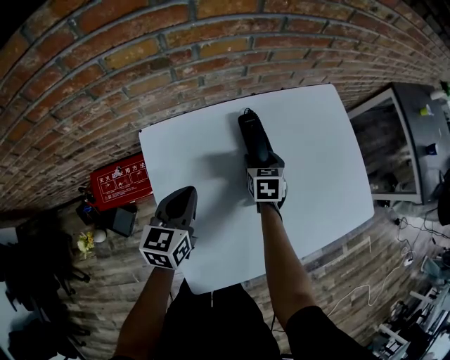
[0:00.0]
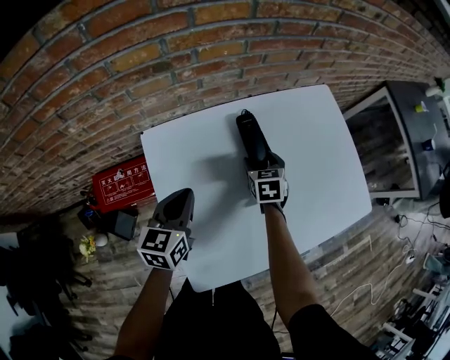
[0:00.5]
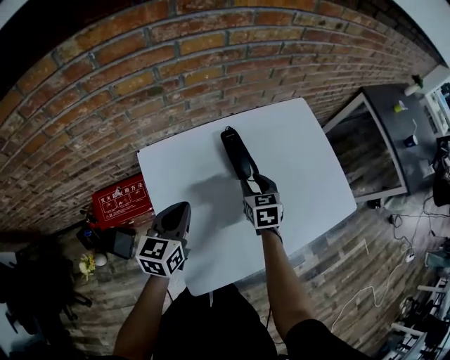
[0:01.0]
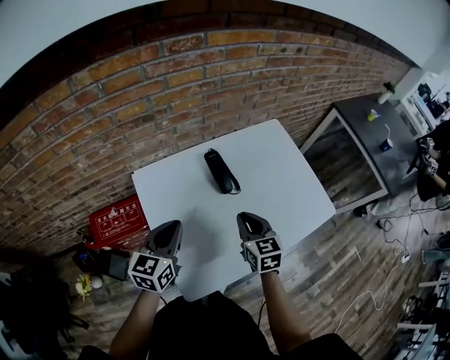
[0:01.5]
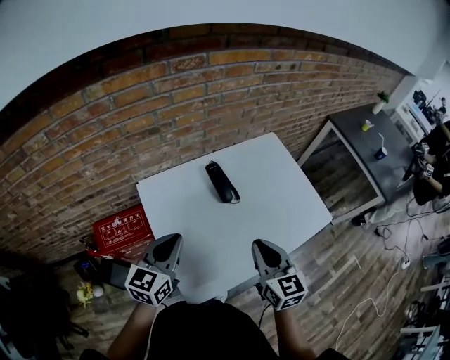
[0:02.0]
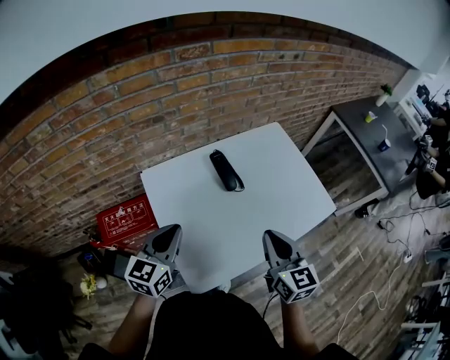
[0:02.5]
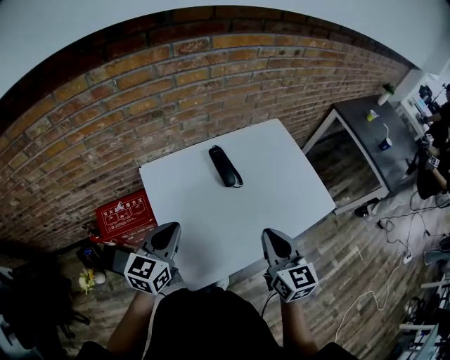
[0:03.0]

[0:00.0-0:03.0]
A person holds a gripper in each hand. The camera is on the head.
0:00.0 to 0:01.5: The left gripper heads upward and backward, covering some 15 cm; the right gripper heads backward and upward, covering roughly 25 cm, and closes up.
0:01.5 to 0:03.0: The left gripper moves backward, some 5 cm; the right gripper is displaced upward and backward by about 15 cm.

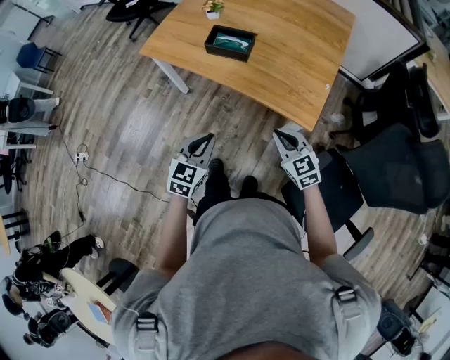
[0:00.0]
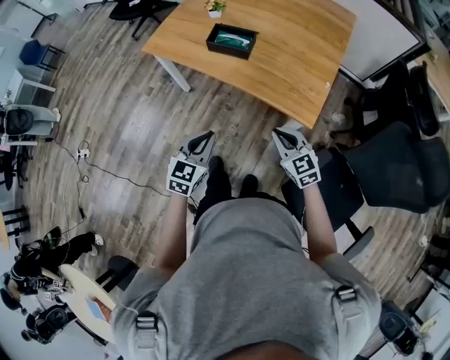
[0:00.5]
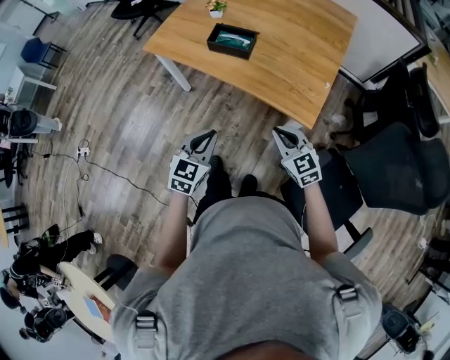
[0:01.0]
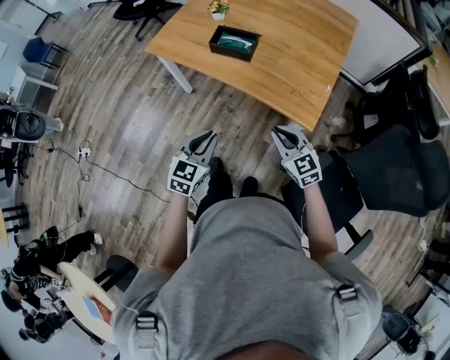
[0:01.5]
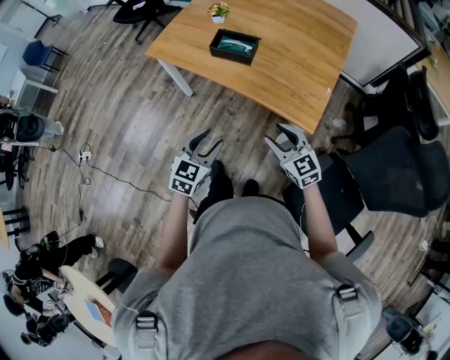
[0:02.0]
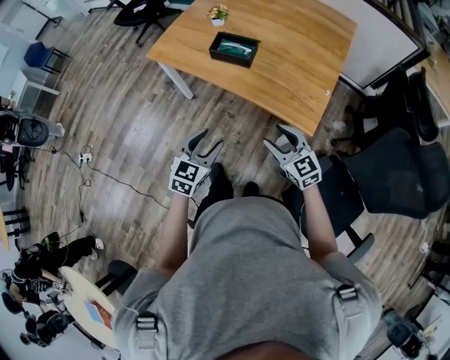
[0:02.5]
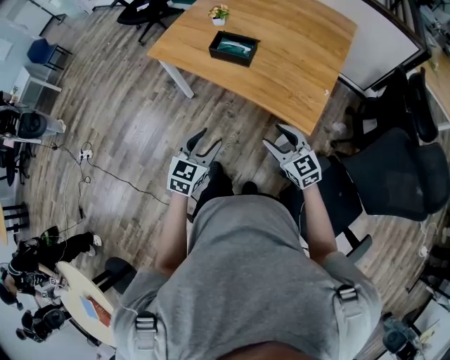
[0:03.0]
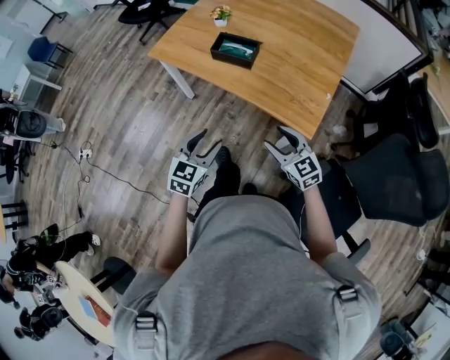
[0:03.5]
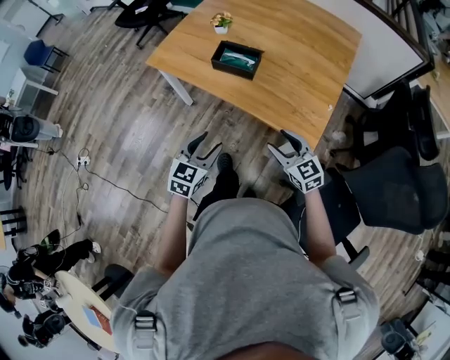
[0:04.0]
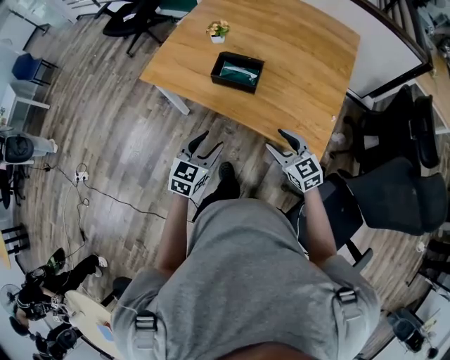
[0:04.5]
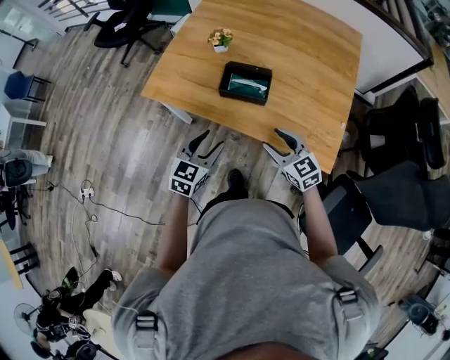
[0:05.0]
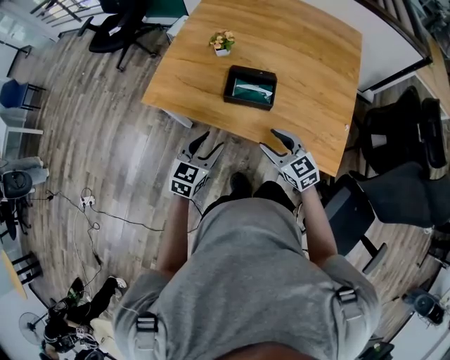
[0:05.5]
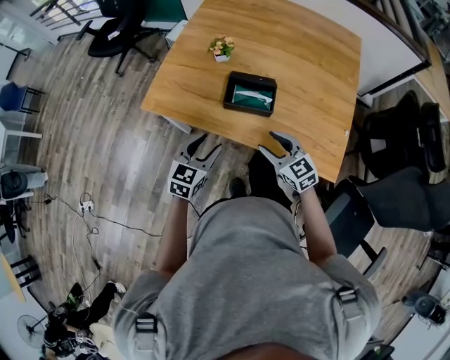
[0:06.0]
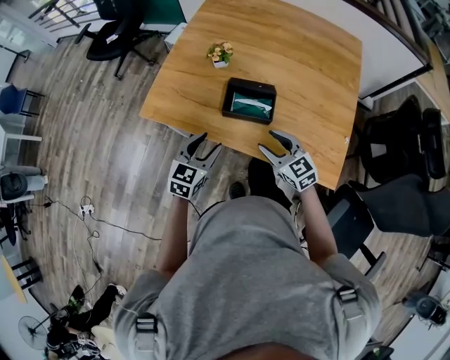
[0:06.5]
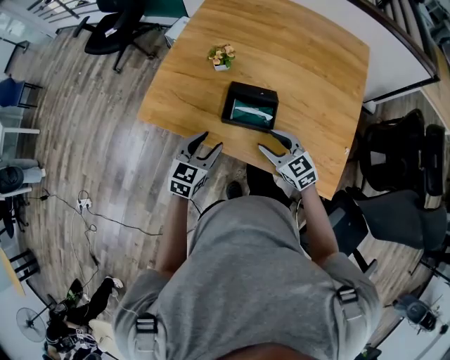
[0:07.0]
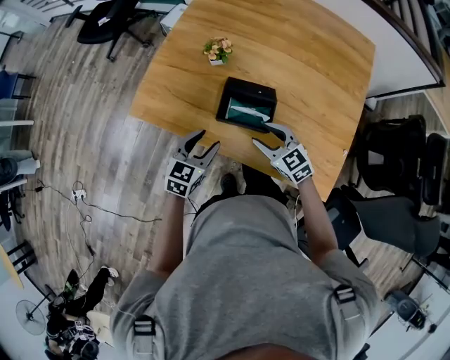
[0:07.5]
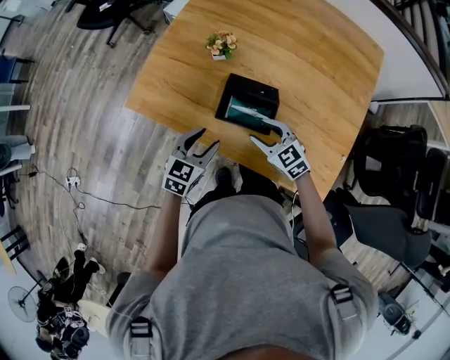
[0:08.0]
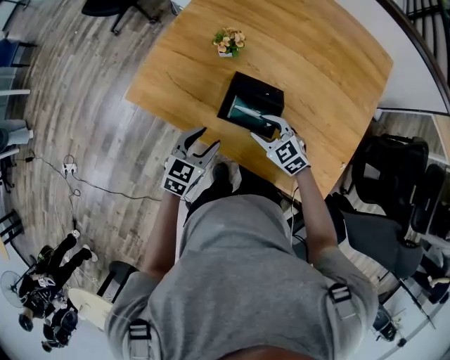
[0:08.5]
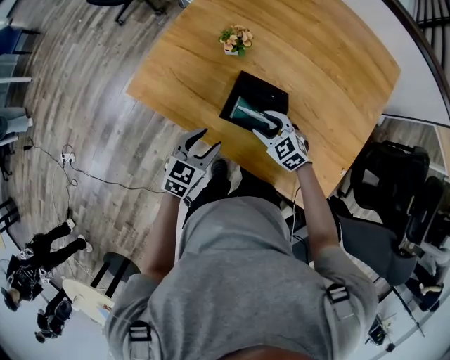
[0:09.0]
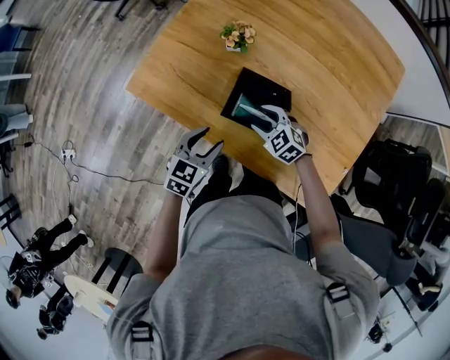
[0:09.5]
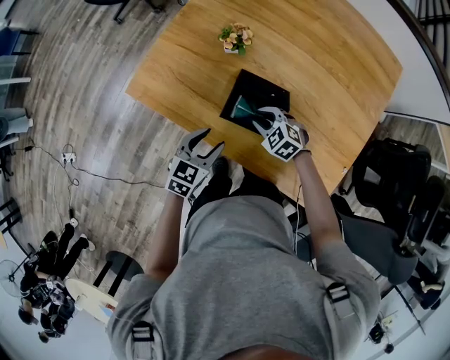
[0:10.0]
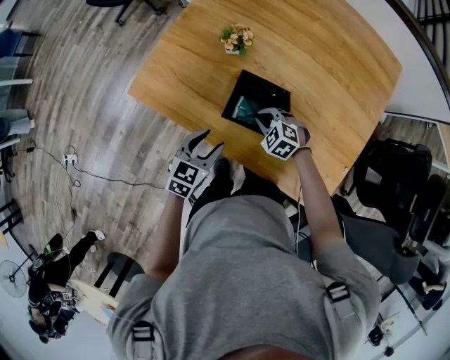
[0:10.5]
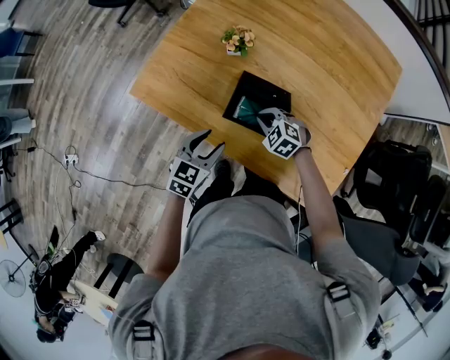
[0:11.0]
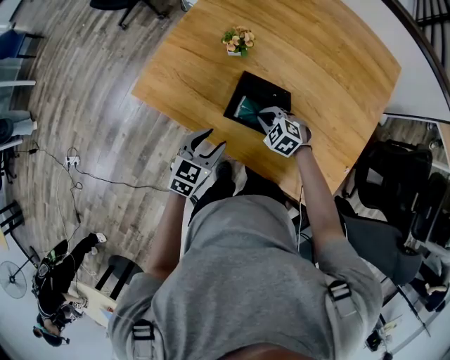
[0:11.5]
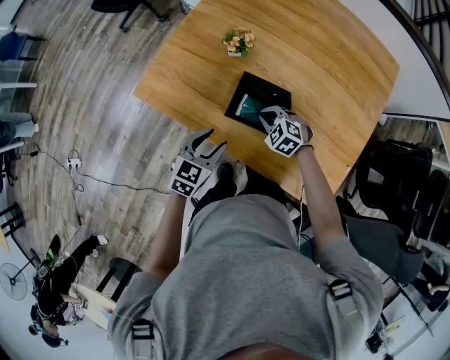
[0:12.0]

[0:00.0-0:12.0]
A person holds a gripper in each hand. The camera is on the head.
0:00.0 to 0:02.0: The left gripper opens up. Meanwhile the right gripper opens its fingers.
0:02.0 to 0:04.0: Both grippers move forward, some 5 cm.
0:04.0 to 0:06.0: Both grippers move forward and to the left, some 25 cm.
0:06.0 to 0:08.0: The right gripper heads forward, covering some 15 cm; the left gripper is displaced forward and downward by some 15 cm.
0:08.0 to 0:10.0: The right gripper goes about 10 cm downward and forward, turns by approximately 30 degrees, and closes up.
0:10.0 to 0:12.0: The right gripper closes.

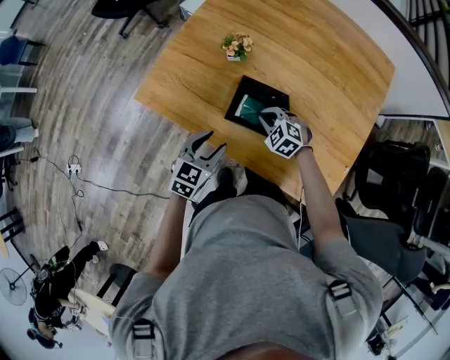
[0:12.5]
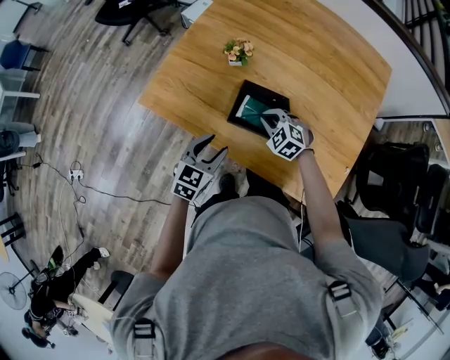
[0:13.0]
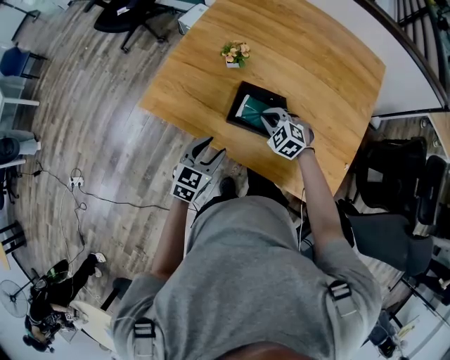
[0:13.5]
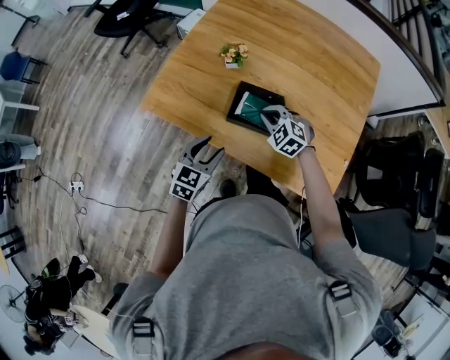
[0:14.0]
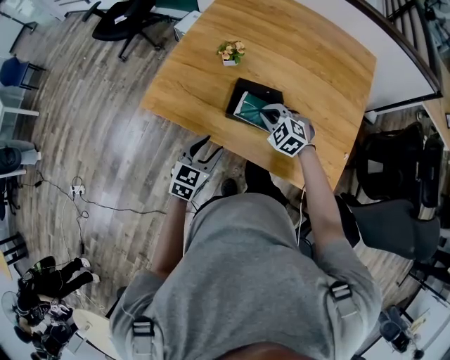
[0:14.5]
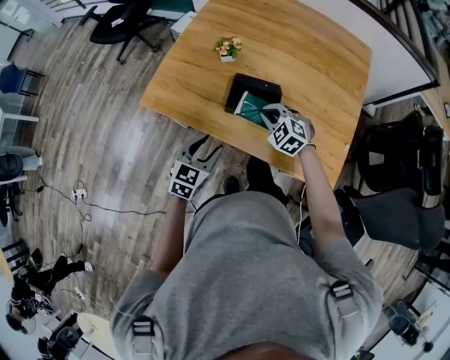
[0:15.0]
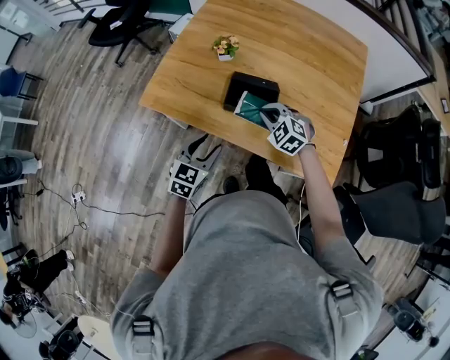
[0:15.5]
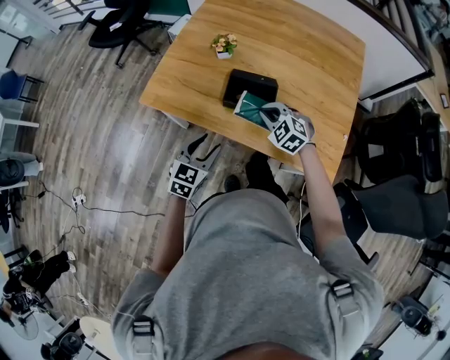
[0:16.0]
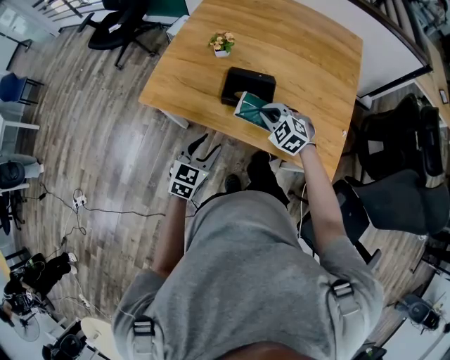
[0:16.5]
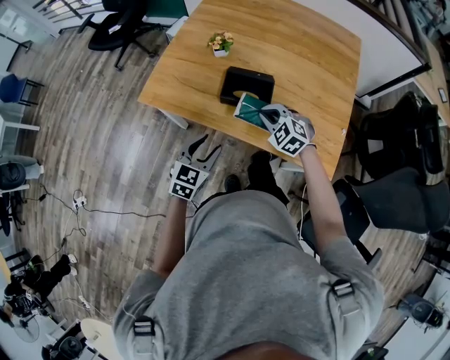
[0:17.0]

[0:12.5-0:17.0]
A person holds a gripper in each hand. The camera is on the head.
0:12.5 to 0:14.5: The left gripper is displaced backward by about 5 cm, while the right gripper travels upward by approximately 10 cm.
0:14.5 to 0:17.0: The grippers both shift backward by some 10 cm.

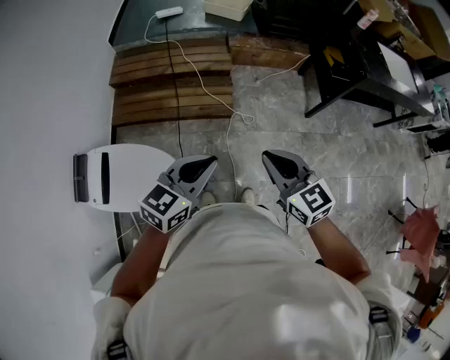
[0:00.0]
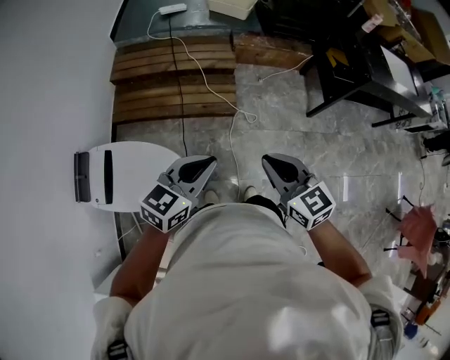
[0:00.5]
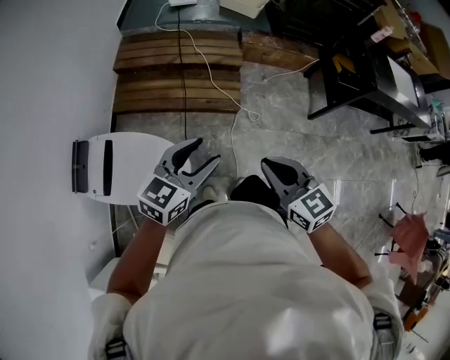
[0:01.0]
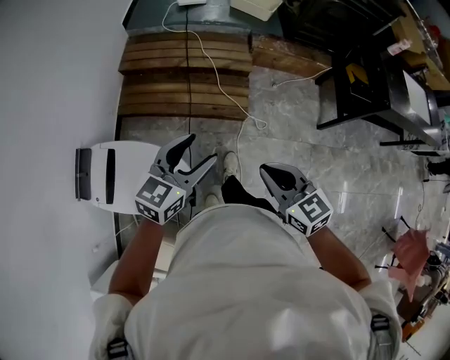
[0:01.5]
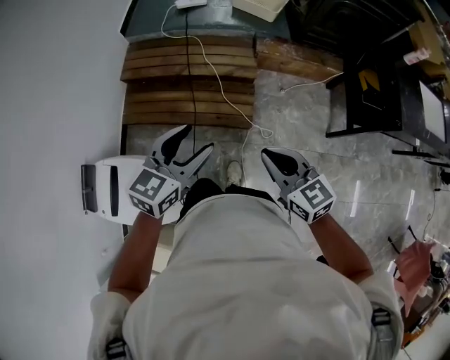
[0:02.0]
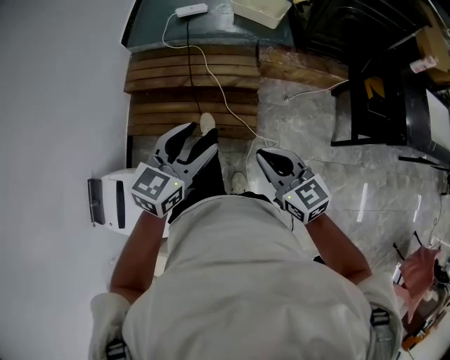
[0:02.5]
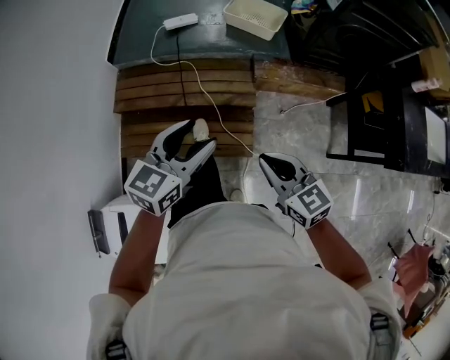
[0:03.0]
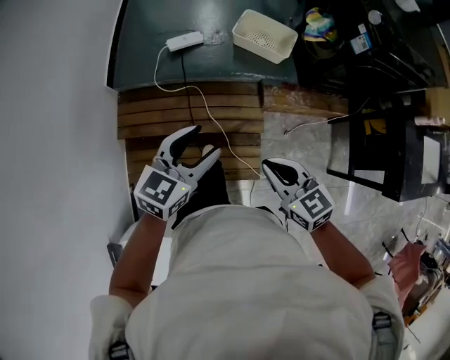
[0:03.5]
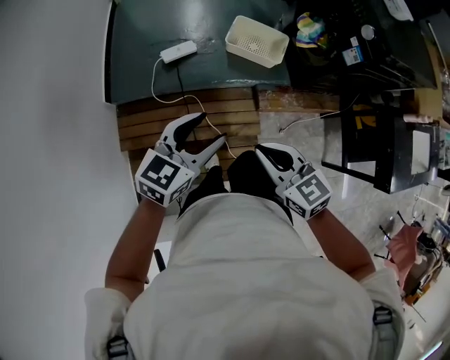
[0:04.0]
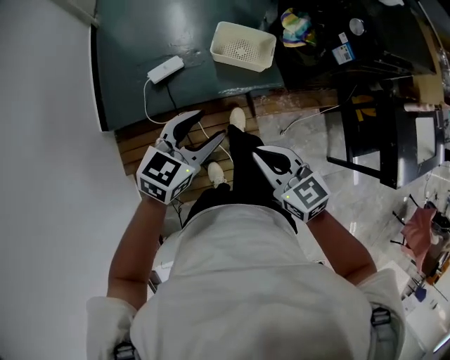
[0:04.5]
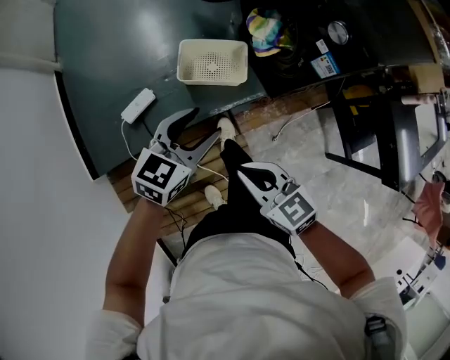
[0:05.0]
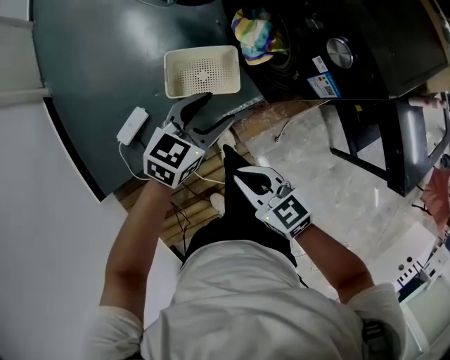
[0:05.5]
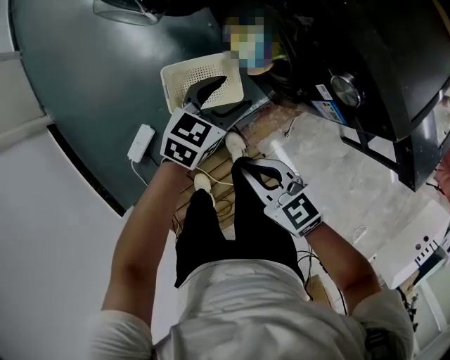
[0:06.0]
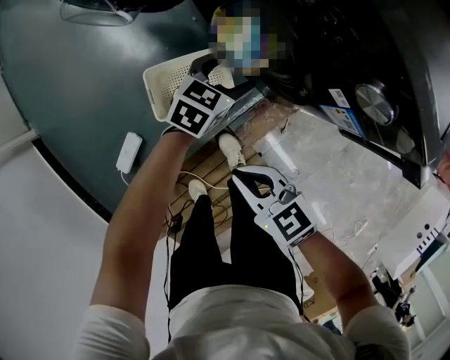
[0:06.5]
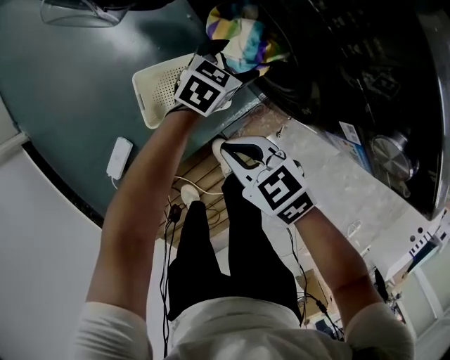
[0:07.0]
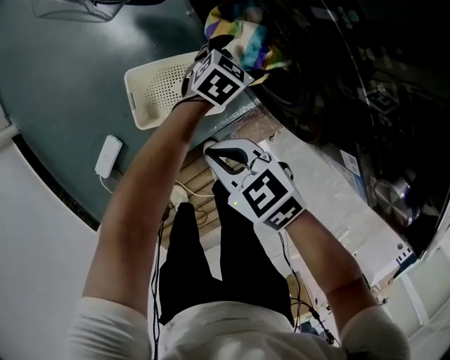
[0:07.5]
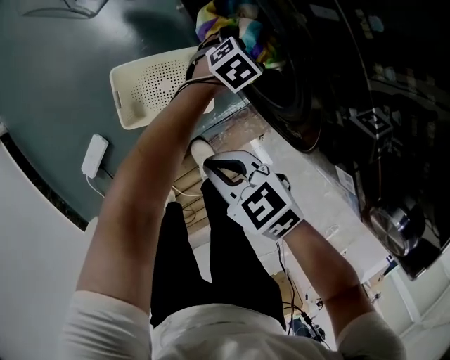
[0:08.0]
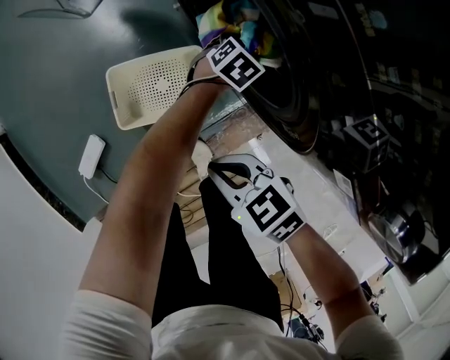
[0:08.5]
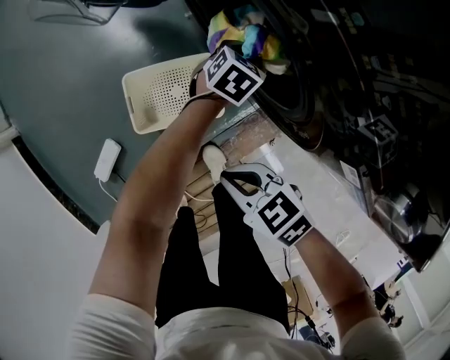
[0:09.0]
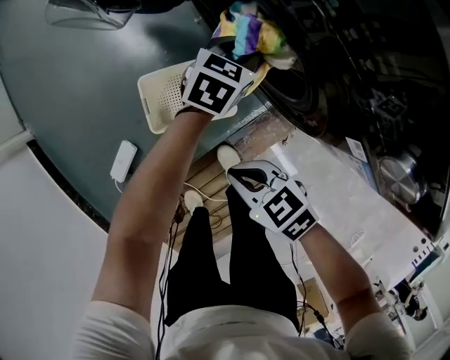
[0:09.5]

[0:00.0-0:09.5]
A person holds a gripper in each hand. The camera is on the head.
0:00.0 to 0:02.0: The two grippers go approximately 25 cm forward. The left gripper opens.
0:02.0 to 0:04.0: Both grippers are carried forward, roughly 60 cm.
0:04.0 to 0:05.5: The right gripper moves forward and downward, some 30 cm. Meanwhile the left gripper moves forward and to the right, some 50 cm, and changes its angle by some 20 degrees.
0:05.5 to 0:07.5: The right gripper shifts by roughly 25 cm. The left gripper moves some 40 cm, rotates roughly 20 degrees, and opens up.
0:07.5 to 0:09.5: The left gripper moves some 10 cm downward and comes back, and closes its fingers; the right gripper moves approximately 5 cm.
